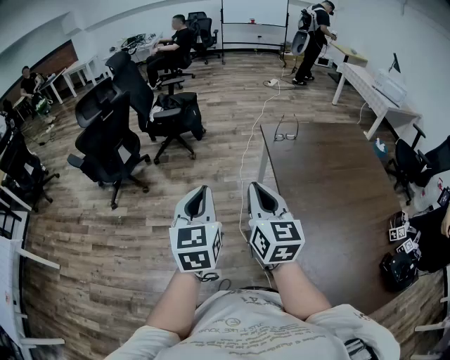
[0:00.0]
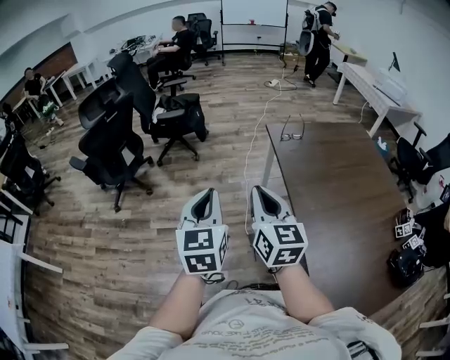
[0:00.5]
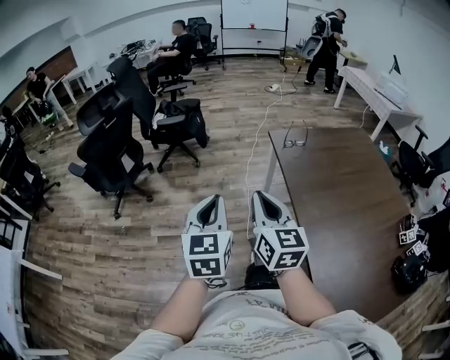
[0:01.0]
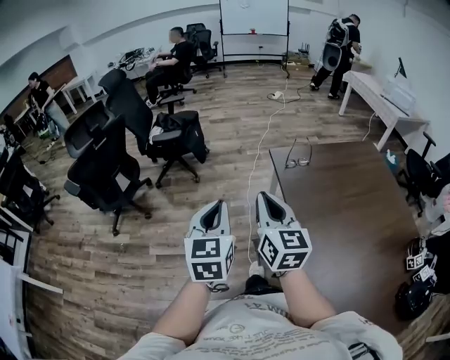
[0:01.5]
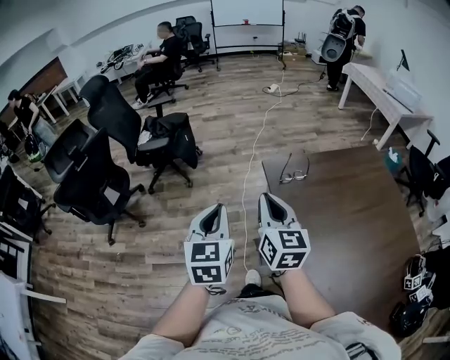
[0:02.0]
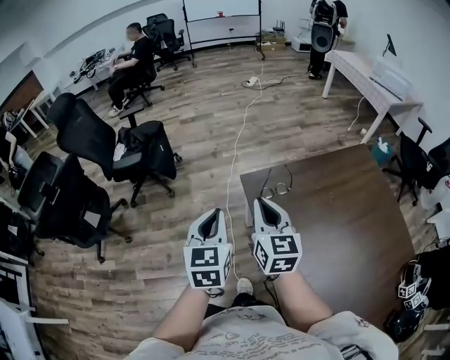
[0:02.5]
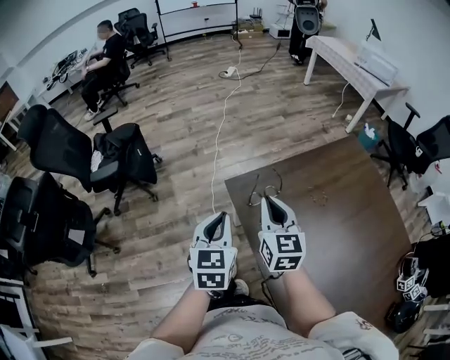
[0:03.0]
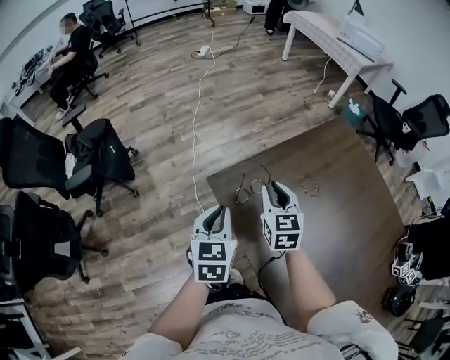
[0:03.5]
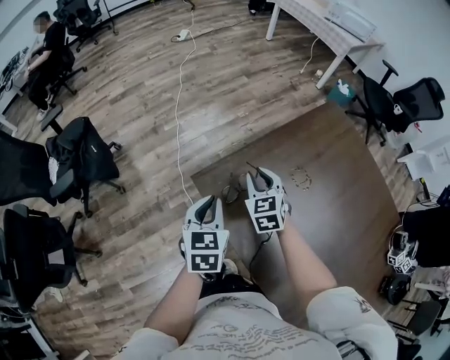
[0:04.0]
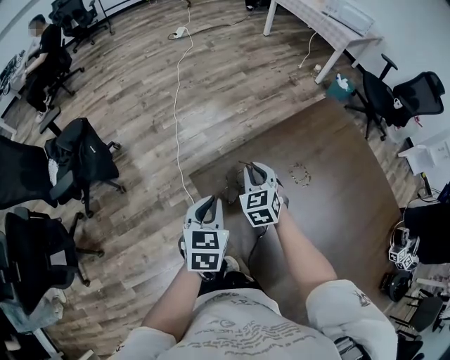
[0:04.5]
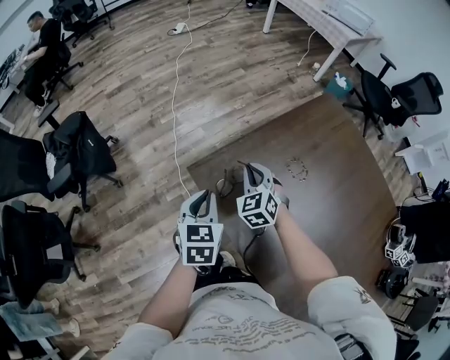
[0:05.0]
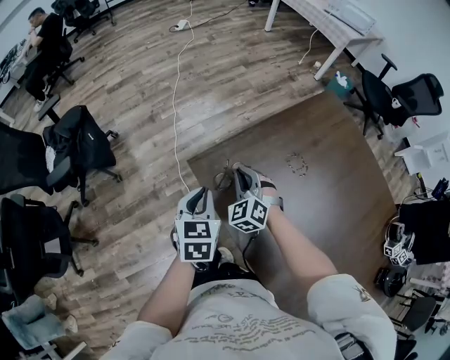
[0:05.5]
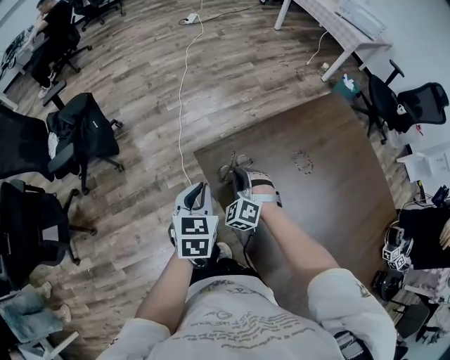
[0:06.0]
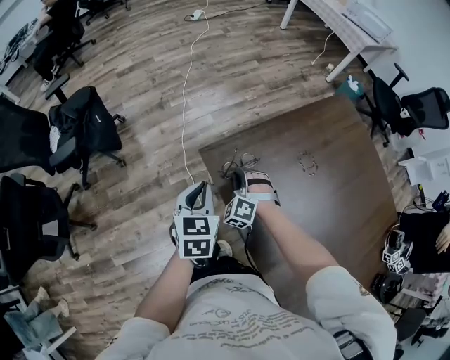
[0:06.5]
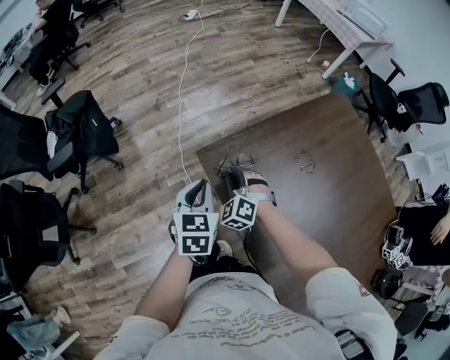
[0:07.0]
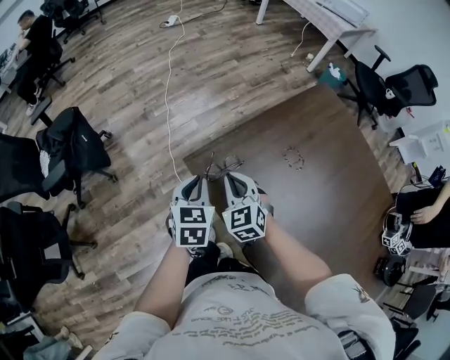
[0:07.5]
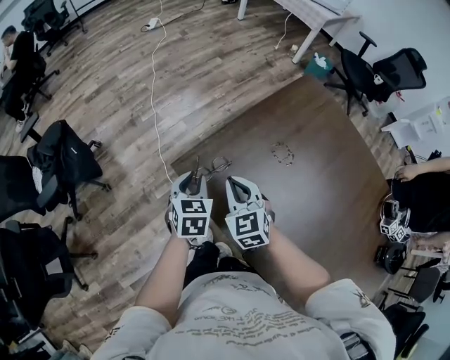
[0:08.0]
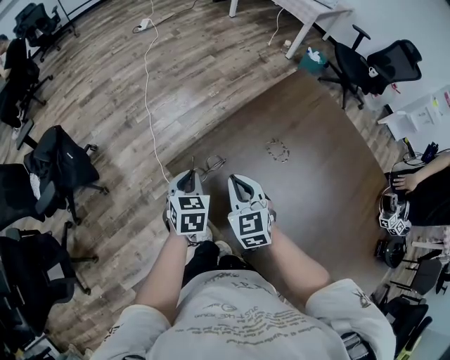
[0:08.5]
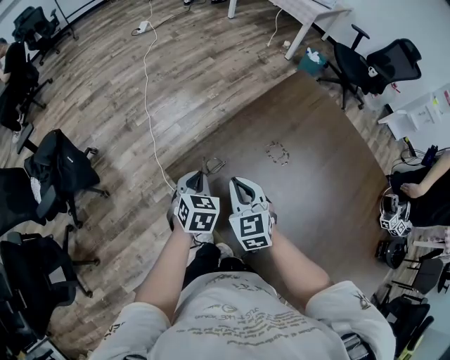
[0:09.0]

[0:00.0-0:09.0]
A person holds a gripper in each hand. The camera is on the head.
0:00.0 to 0:02.0: Both grippers move forward, about 30 cm.
0:02.0 to 0:04.5: The left gripper moves roughly 40 cm, and turns by some 40 degrees; the right gripper moves some 40 cm, and swivels approximately 40 degrees.
0:04.5 to 0:07.0: The right gripper heads to the left, backward and downward, covering roughly 15 cm, and changes its angle by about 40 degrees. Meanwhile the left gripper heads to the left, covering approximately 5 cm.
0:07.0 to 0:09.0: The left gripper goes about 15 cm to the right, forward and downward, and changes its angle by about 20 degrees; the right gripper travels upward and to the right by approximately 15 cm, twists approximately 50 degrees clockwise, seen from behind, and closes up.

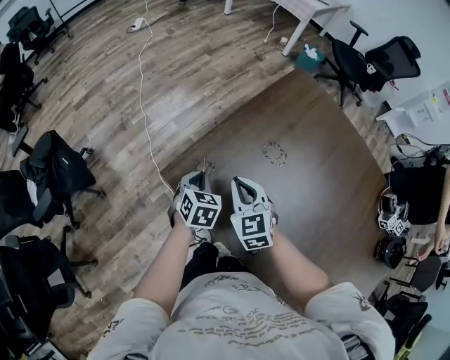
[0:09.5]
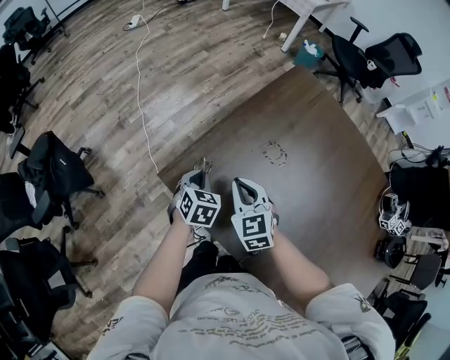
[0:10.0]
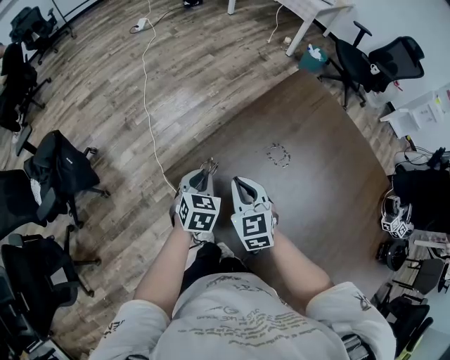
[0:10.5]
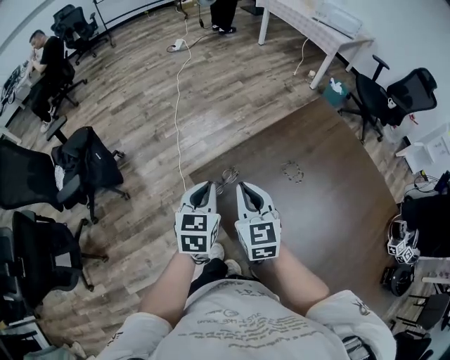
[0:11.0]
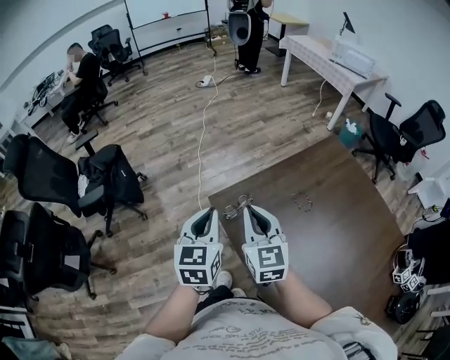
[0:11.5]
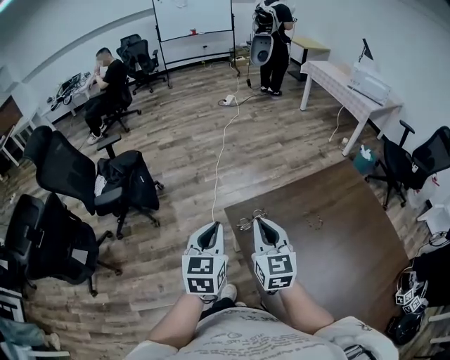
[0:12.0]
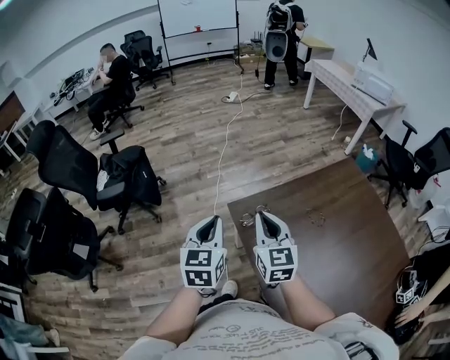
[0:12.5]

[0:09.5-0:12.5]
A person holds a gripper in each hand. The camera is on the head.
0:09.5 to 0:11.0: The left gripper shifts roughly 15 cm upward, and changes its angle by approximately 30 degrees, while the right gripper travels upward by roughly 10 cm.
0:11.0 to 0:12.5: The right gripper is displaced upward by some 5 cm; the left gripper shifts approximately 15 cm upward, to the left and backward.

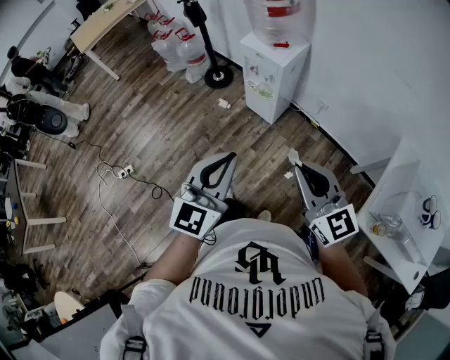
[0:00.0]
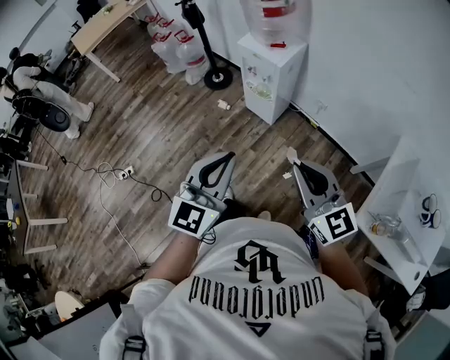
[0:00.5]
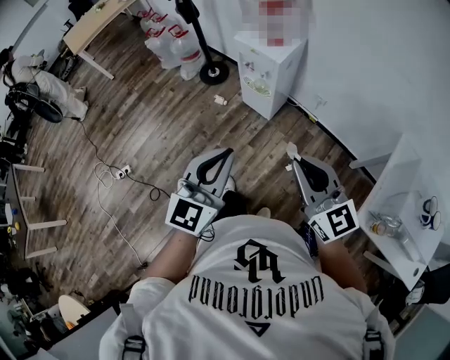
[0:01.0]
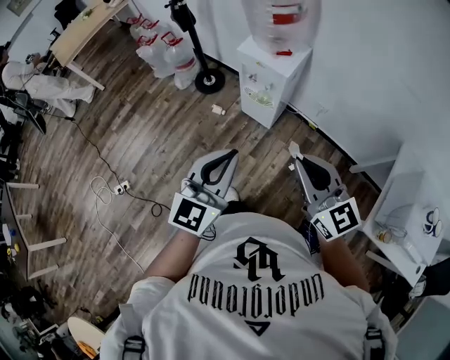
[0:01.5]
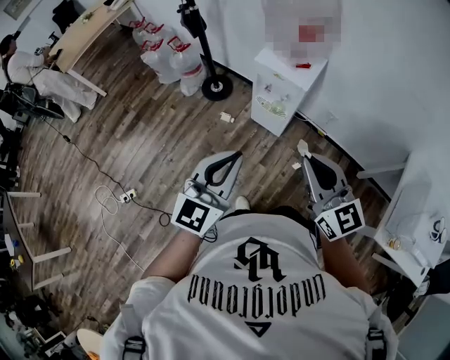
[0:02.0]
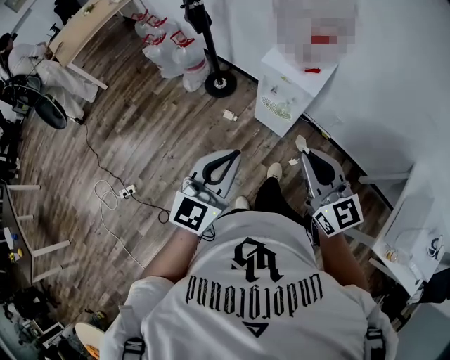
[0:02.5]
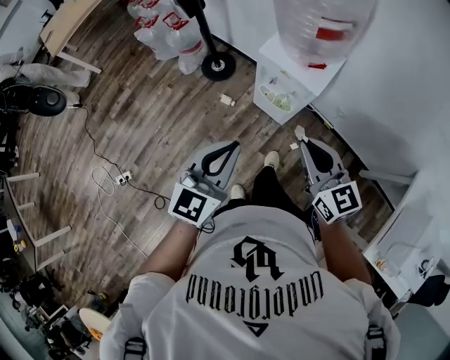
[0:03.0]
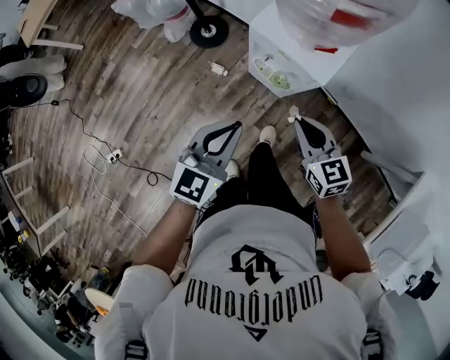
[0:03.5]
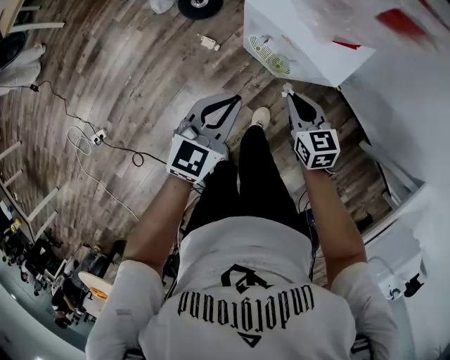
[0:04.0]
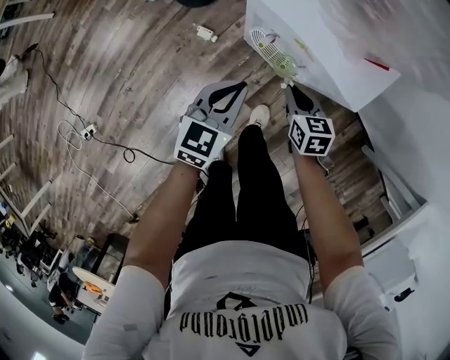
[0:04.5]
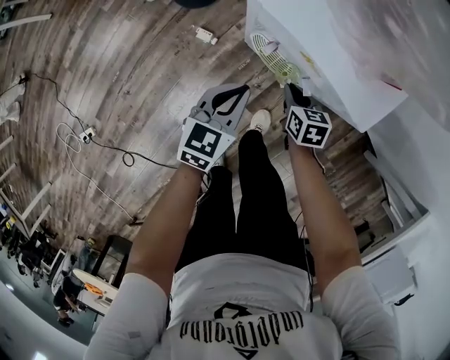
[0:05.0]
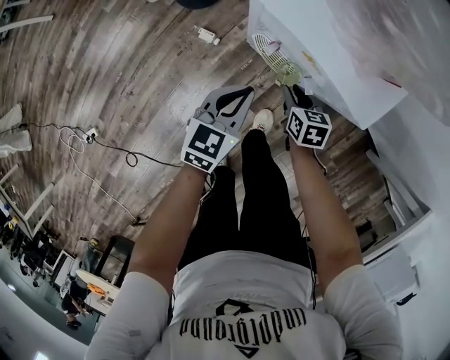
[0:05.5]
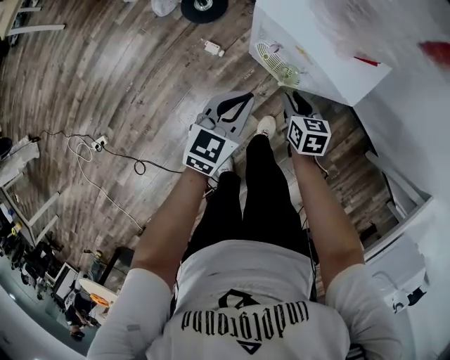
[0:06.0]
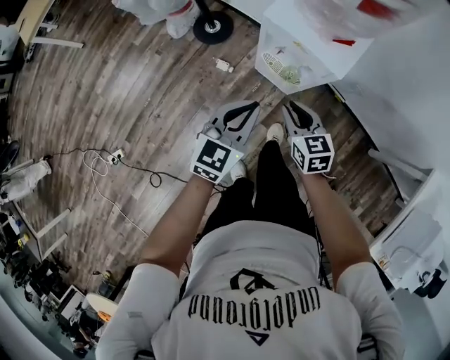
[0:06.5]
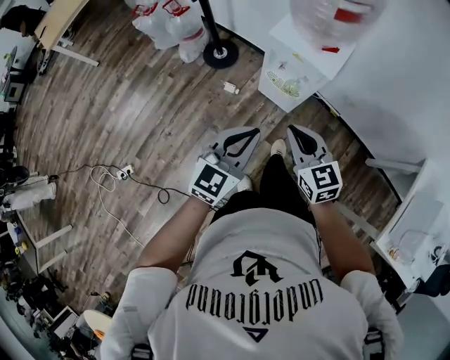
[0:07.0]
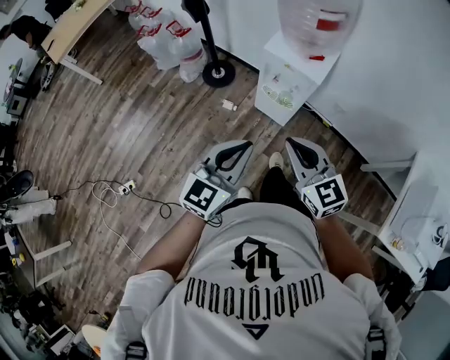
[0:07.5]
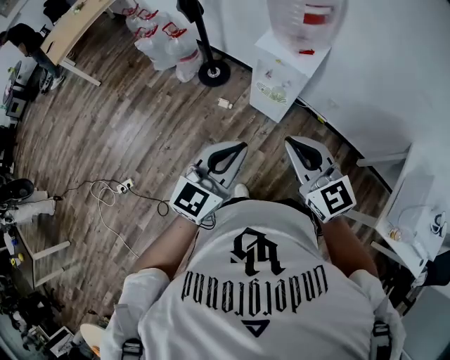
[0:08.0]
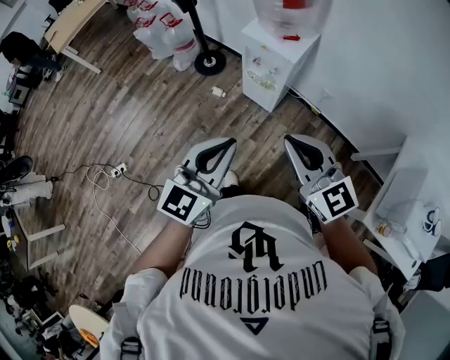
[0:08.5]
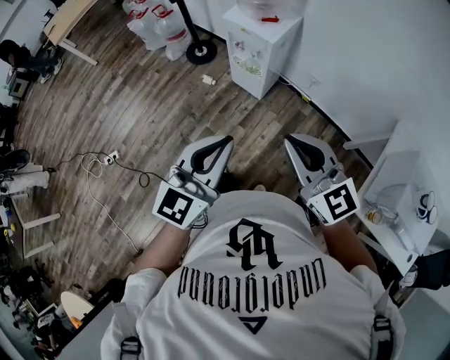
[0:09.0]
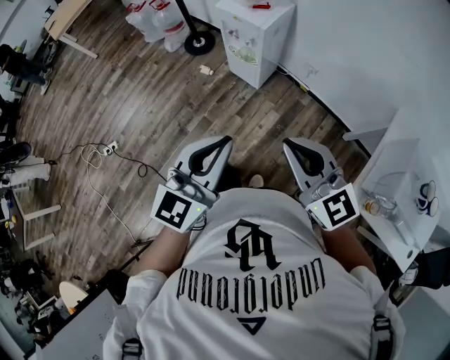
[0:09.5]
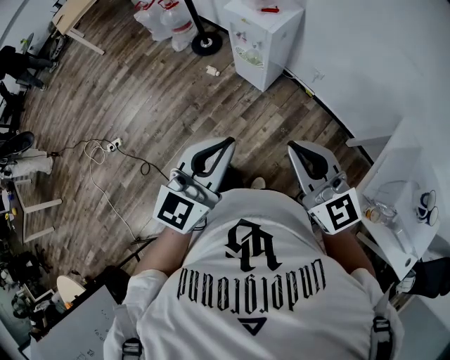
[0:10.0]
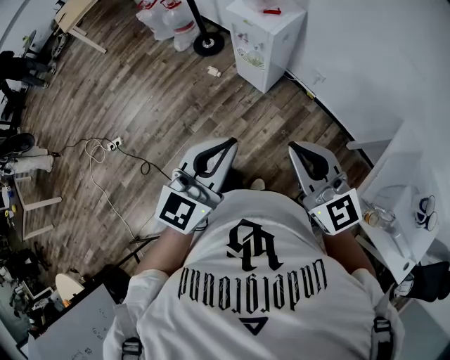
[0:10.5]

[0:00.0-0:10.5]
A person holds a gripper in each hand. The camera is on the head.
0:00.0 to 0:02.0: The two grippers go approximately 25 cm forward and to the left.
0:02.0 to 0:04.0: The right gripper moves downward and forward, roughly 50 cm, and angles its fingers downward, by some 30 degrees. The left gripper shifts roughly 50 cm forward and downward, and rotates about 20 degrees.
0:04.0 to 0:06.5: The left gripper moves backward, some 5 cm, and reaches roughly 20 cm downward, then returns. Meanwhile the right gripper goes some 10 cm backward and to the left, and reaches approximately 20 cm downward, then returns.
0:06.5 to 0:08.5: The right gripper travels upward and backward by some 50 cm, and swivels about 40 degrees. The left gripper travels backward and upward by approximately 40 cm.
0:08.5 to 0:10.5: Both grippers travel together to the right and backward, approximately 20 cm.

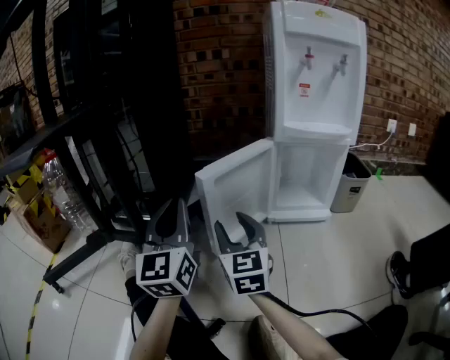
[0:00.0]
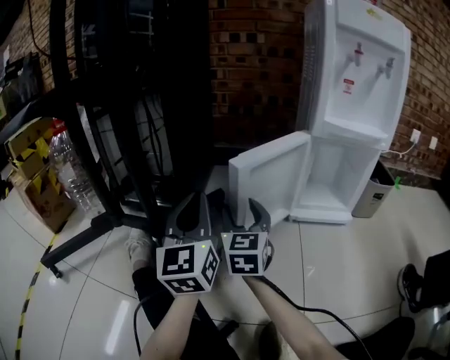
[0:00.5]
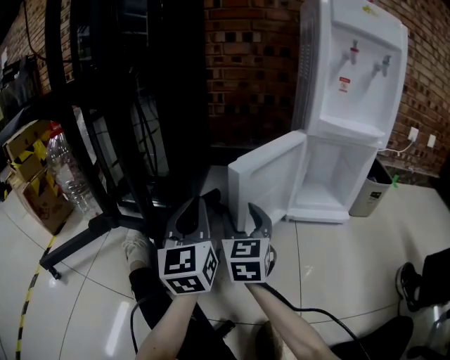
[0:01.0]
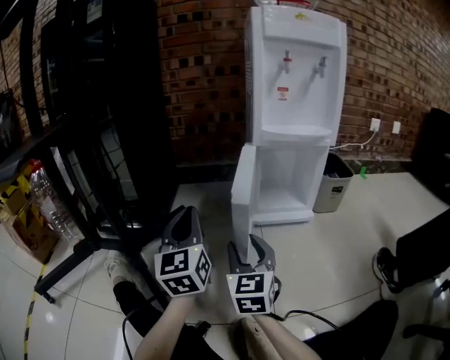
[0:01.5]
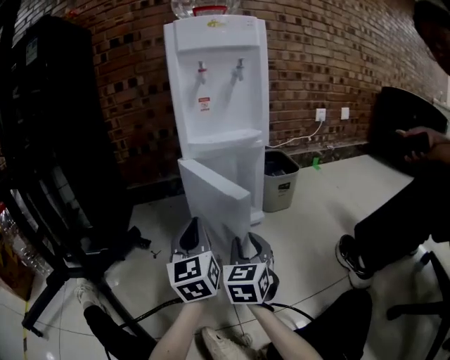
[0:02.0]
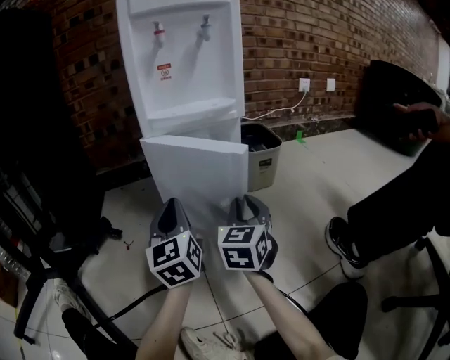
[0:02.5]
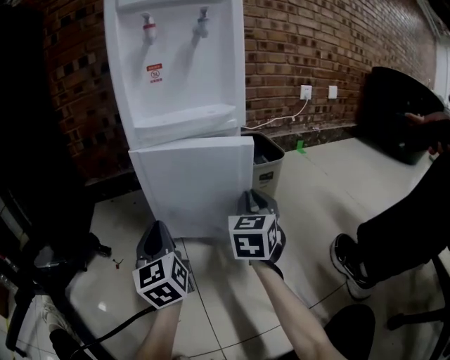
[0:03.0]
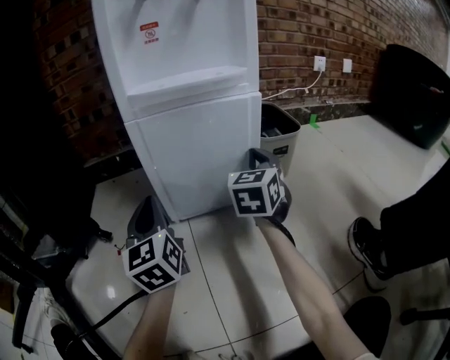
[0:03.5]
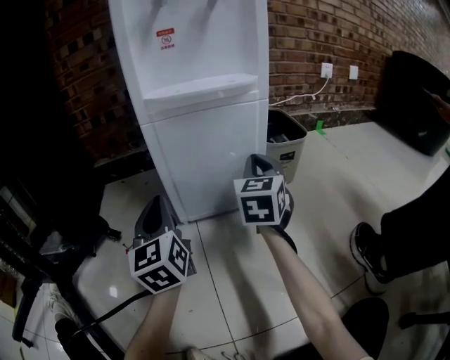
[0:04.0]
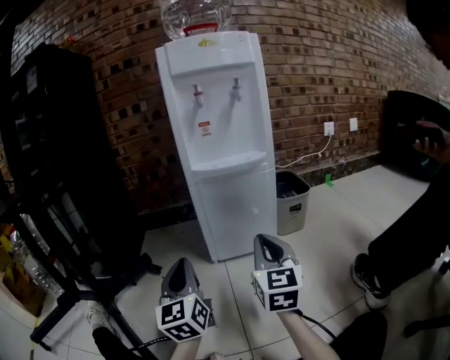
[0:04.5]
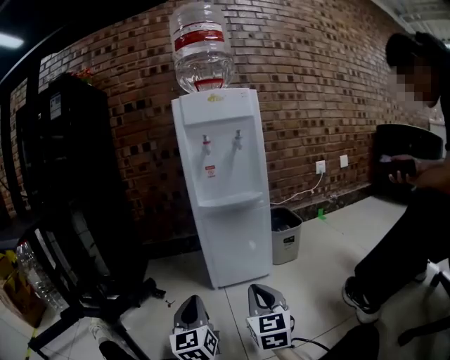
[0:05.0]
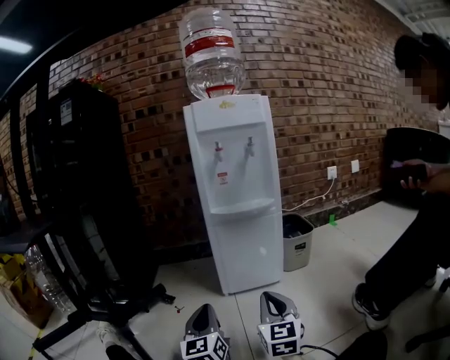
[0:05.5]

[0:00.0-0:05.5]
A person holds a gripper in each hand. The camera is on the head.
0:00.0 to 0:02.0: Both grippers move to the right, about 25 cm. The right gripper swivels roughly 30 degrees.
0:02.0 to 0:03.5: The left gripper moves forward and downward, about 15 cm. The right gripper is displaced forward and to the right by some 25 cm, and closes up.
0:03.5 to 0:05.5: The right gripper travels backward and to the left by approximately 30 cm, and changes its angle by roughly 30 degrees. The left gripper travels backward by some 20 cm.
